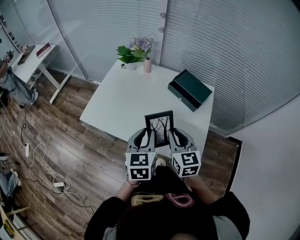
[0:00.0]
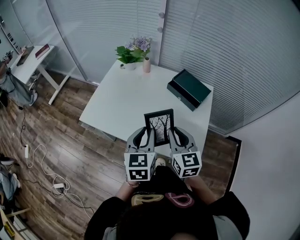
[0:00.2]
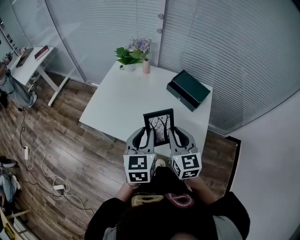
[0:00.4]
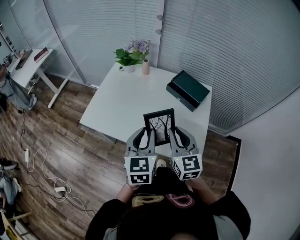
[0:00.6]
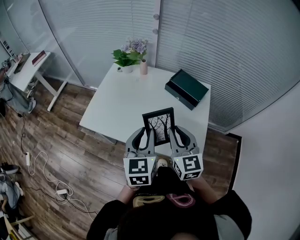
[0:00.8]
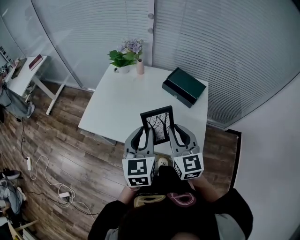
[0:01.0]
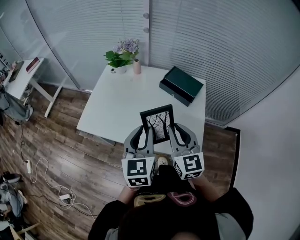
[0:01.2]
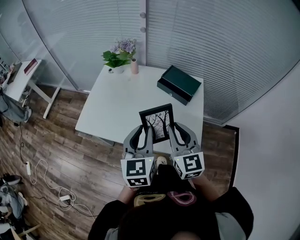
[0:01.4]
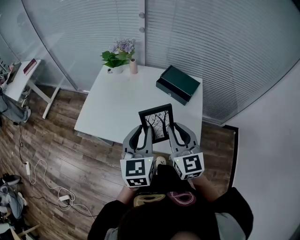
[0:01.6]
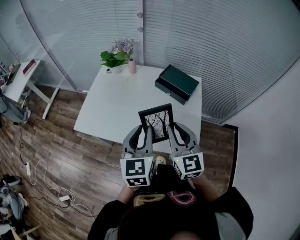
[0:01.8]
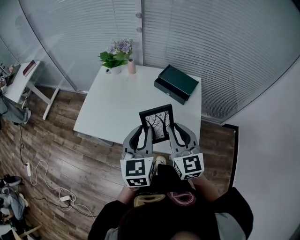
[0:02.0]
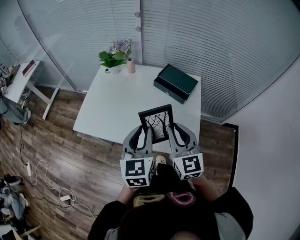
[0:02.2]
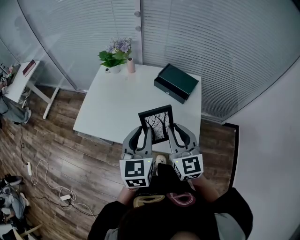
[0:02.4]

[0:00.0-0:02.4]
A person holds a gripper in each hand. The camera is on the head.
0:00.0 to 0:01.2: Both grippers travel together upward, roughly 5 cm.
0:01.2 to 0:02.4: The grippers stay close to where they were, moving slightly.

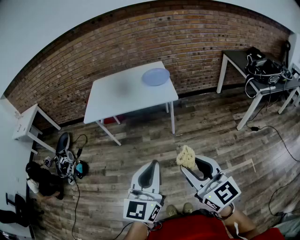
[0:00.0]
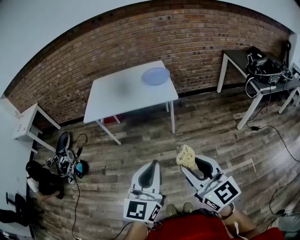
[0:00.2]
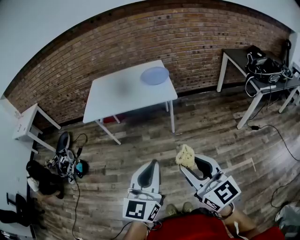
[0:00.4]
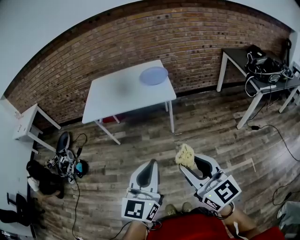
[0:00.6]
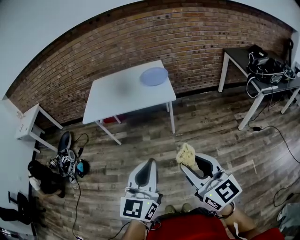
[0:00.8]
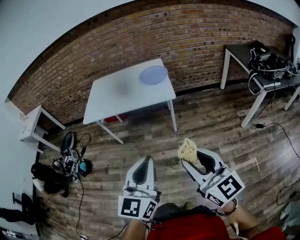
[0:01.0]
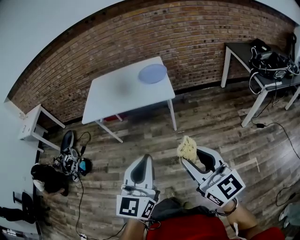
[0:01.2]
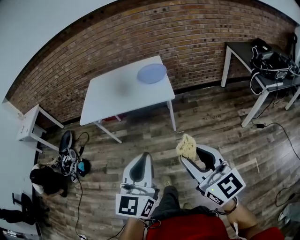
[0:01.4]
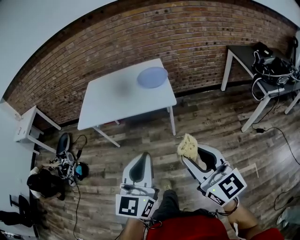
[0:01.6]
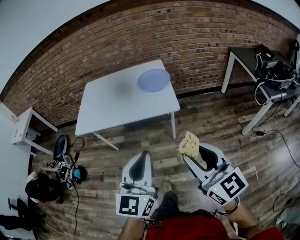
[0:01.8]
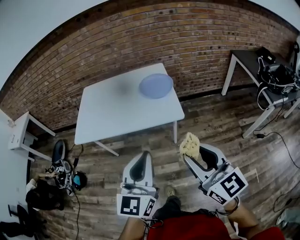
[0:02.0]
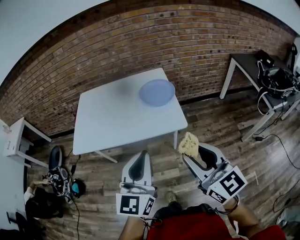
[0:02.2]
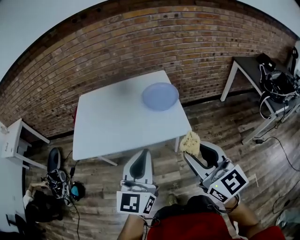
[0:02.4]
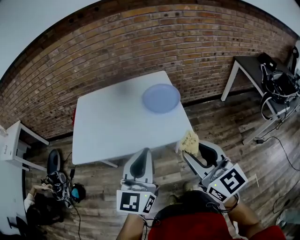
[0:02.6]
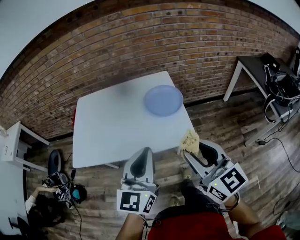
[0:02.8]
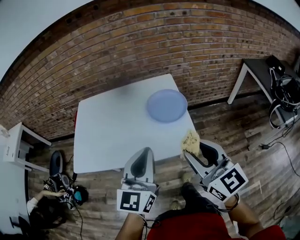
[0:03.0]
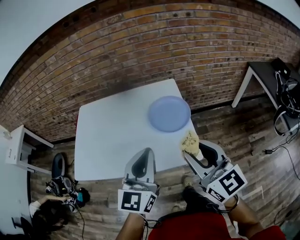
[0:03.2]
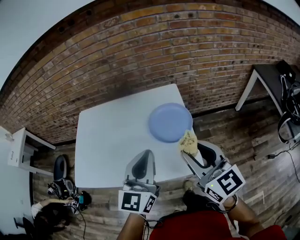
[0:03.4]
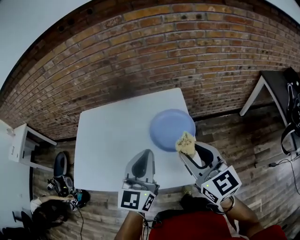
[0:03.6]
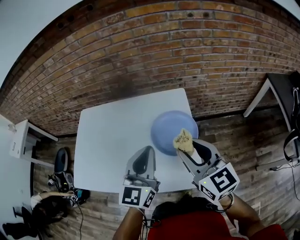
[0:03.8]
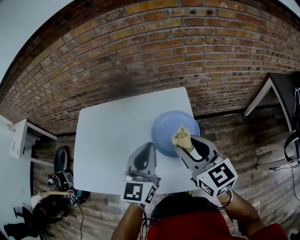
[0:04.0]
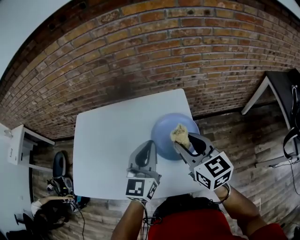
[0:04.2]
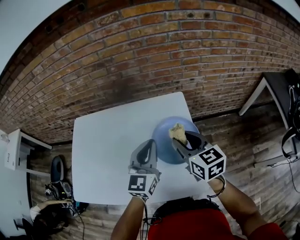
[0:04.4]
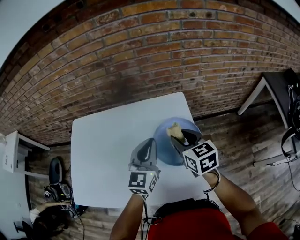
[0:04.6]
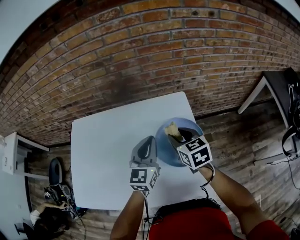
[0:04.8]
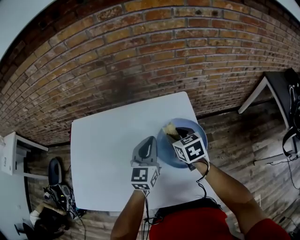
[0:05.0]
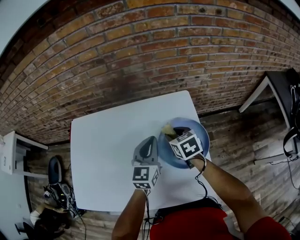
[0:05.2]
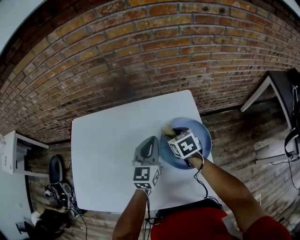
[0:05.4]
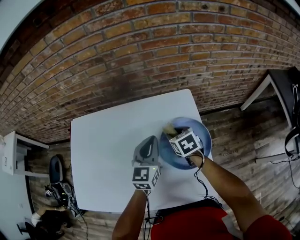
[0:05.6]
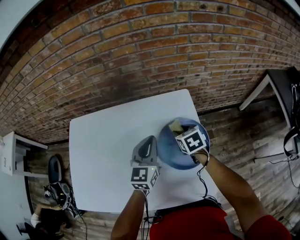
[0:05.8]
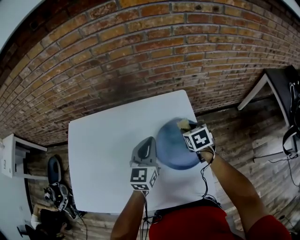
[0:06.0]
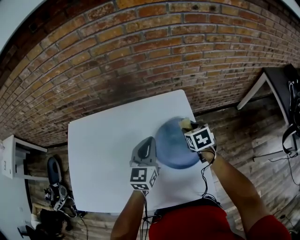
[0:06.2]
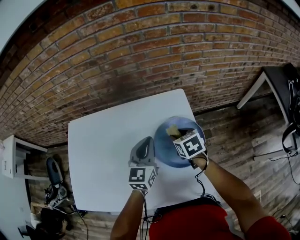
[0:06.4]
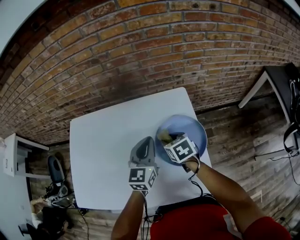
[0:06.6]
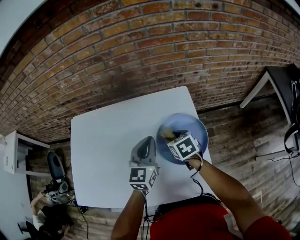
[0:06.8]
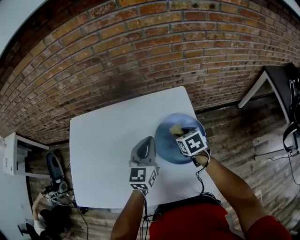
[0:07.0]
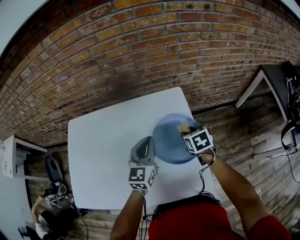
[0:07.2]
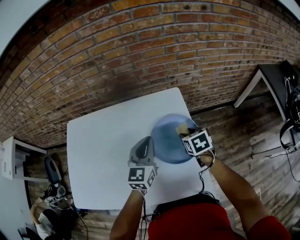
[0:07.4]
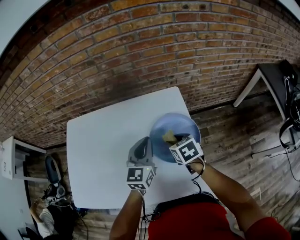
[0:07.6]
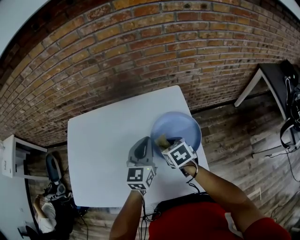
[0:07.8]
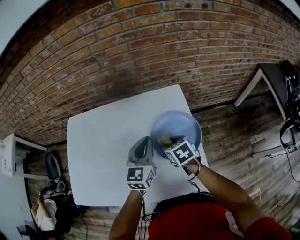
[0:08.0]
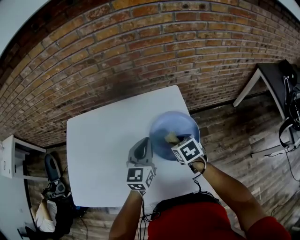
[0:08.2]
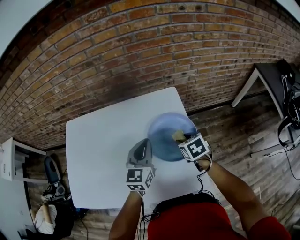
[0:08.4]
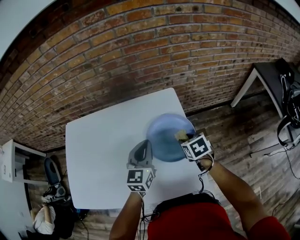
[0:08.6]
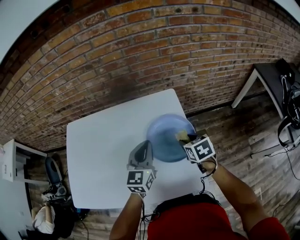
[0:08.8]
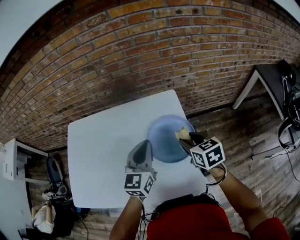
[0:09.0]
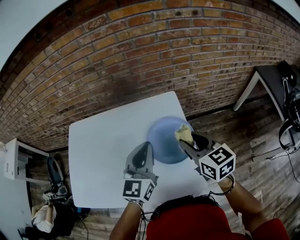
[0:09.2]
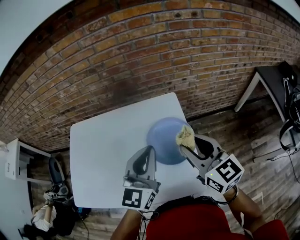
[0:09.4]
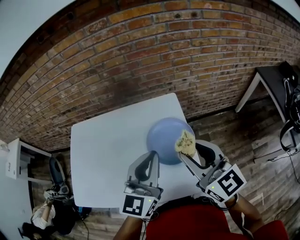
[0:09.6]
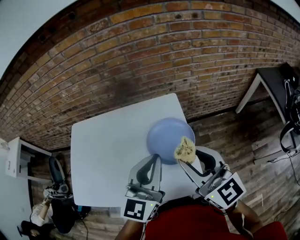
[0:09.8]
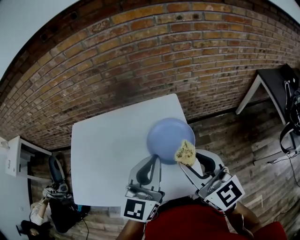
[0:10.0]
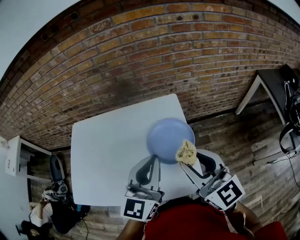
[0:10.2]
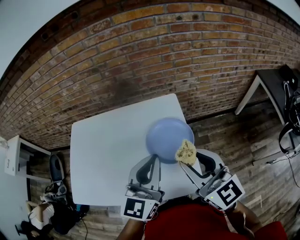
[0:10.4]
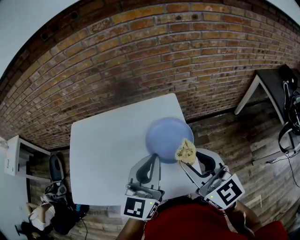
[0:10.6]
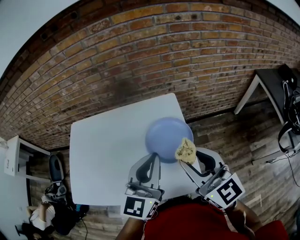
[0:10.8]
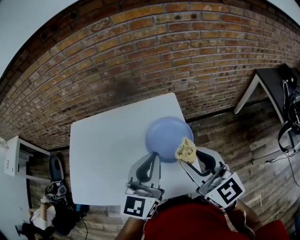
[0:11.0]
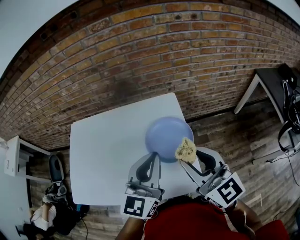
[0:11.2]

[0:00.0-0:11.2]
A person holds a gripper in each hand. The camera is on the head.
0:00.0 to 0:01.6: The grippers both shift forward and to the right by about 15 cm.
0:01.6 to 0:03.2: The pair of grippers is taken forward, roughly 50 cm.
0:03.2 to 0:04.8: The left gripper moves forward, approximately 30 cm. The right gripper shifts approximately 35 cm forward and downward, and tips its fingers downward by roughly 30 degrees.
0:04.8 to 0:06.4: The right gripper moves left and right over about 10 cm, changing direction 2 times.
0:06.4 to 0:08.0: The right gripper goes left and right, some 10 cm each way, reversing 2 times.
0:08.0 to 0:09.6: The right gripper travels upward by roughly 25 cm, and tilts its fingers some 50 degrees upward, while the left gripper heads upward, backward and to the right, covering approximately 20 cm.
0:09.6 to 0:11.2: The grippers make only small movements.

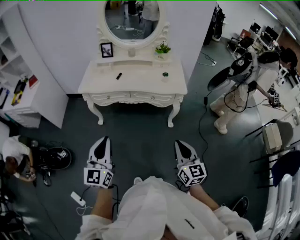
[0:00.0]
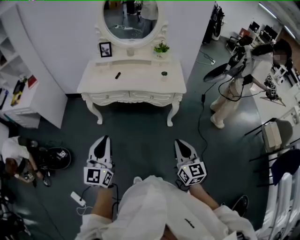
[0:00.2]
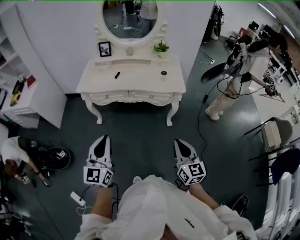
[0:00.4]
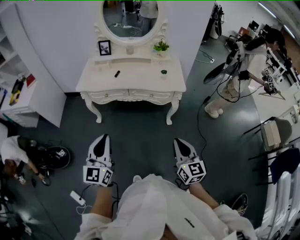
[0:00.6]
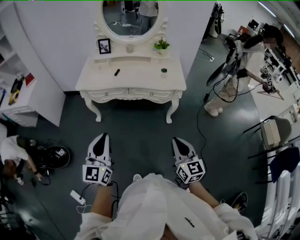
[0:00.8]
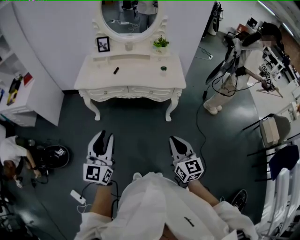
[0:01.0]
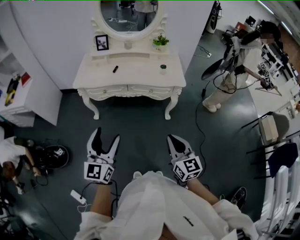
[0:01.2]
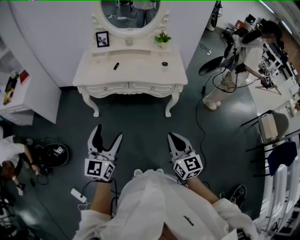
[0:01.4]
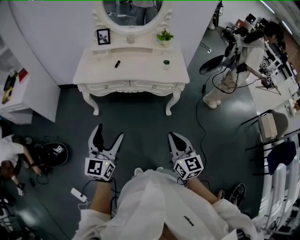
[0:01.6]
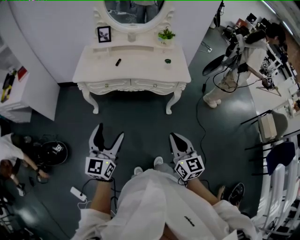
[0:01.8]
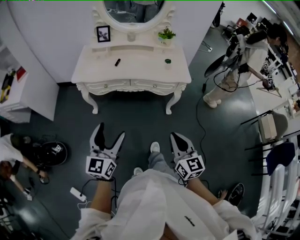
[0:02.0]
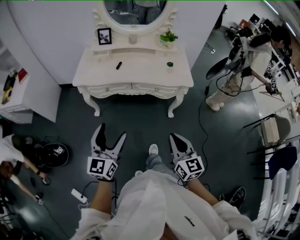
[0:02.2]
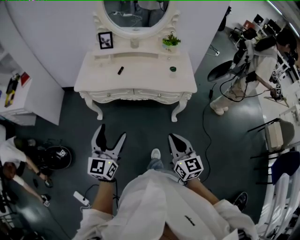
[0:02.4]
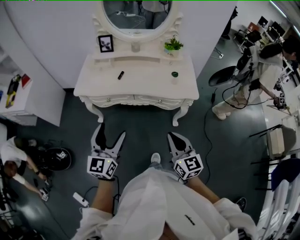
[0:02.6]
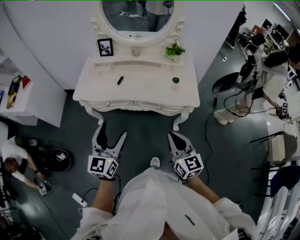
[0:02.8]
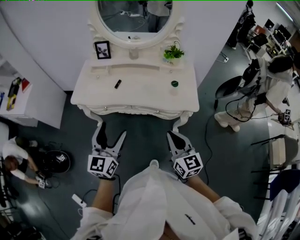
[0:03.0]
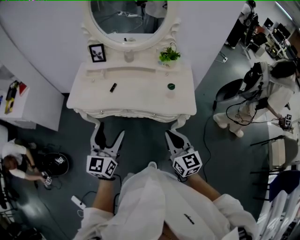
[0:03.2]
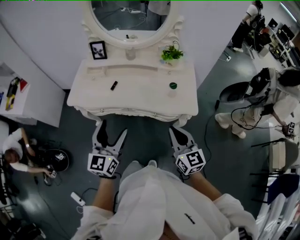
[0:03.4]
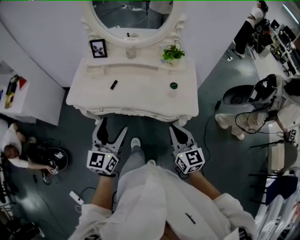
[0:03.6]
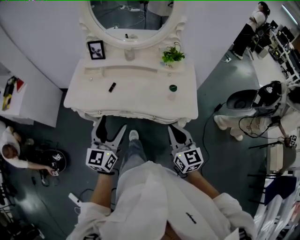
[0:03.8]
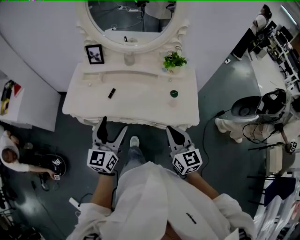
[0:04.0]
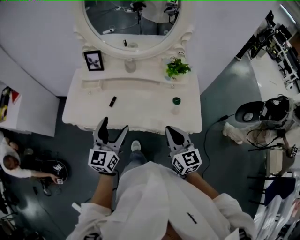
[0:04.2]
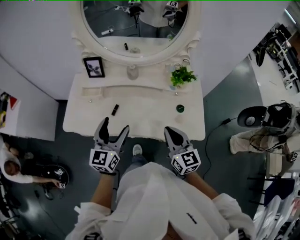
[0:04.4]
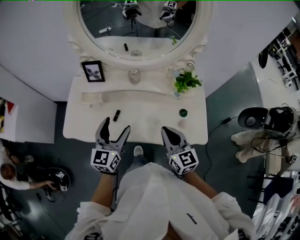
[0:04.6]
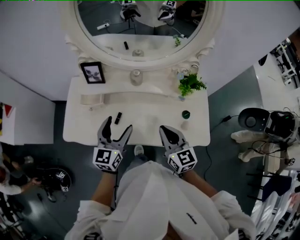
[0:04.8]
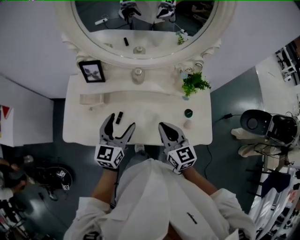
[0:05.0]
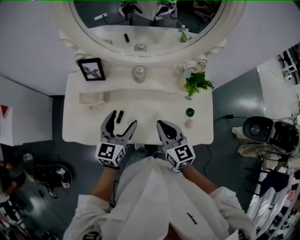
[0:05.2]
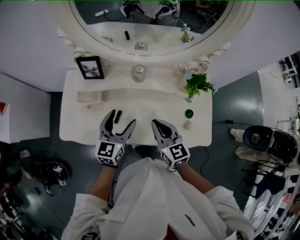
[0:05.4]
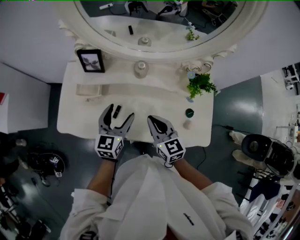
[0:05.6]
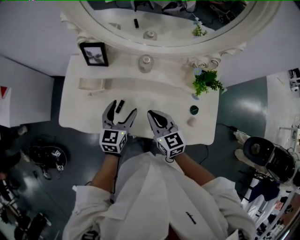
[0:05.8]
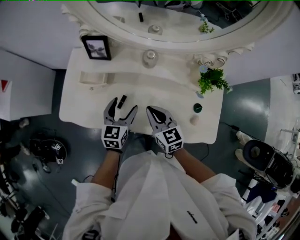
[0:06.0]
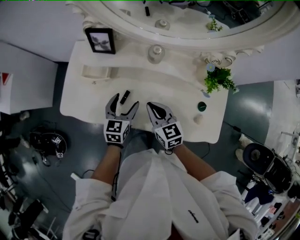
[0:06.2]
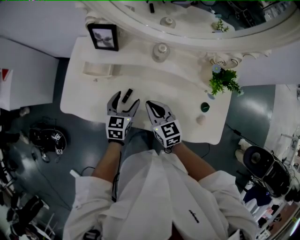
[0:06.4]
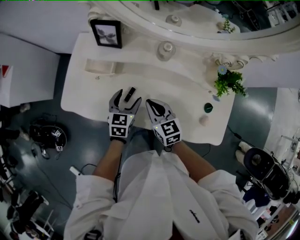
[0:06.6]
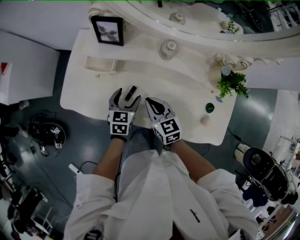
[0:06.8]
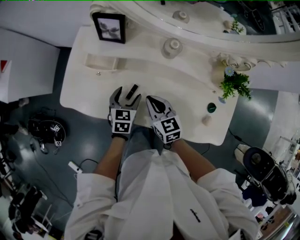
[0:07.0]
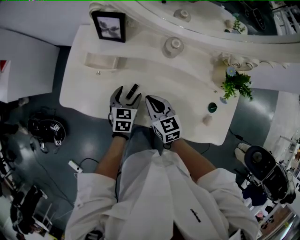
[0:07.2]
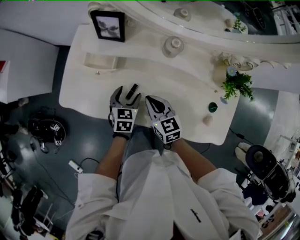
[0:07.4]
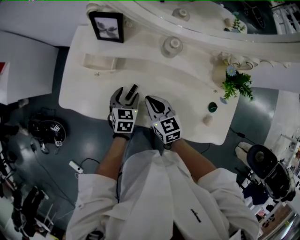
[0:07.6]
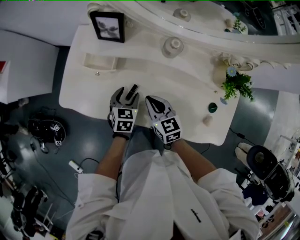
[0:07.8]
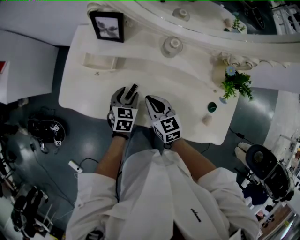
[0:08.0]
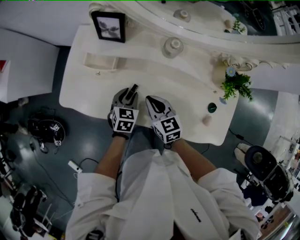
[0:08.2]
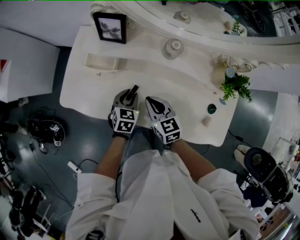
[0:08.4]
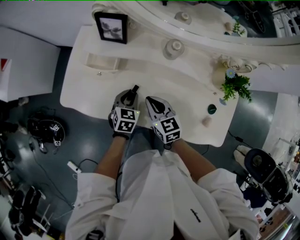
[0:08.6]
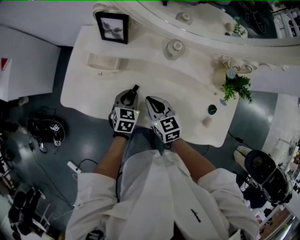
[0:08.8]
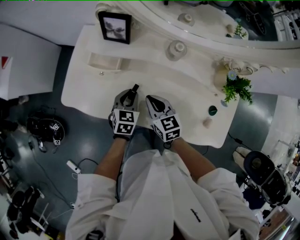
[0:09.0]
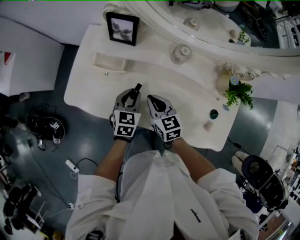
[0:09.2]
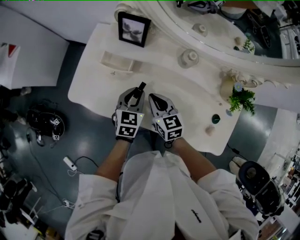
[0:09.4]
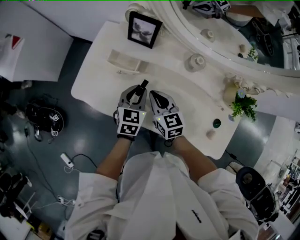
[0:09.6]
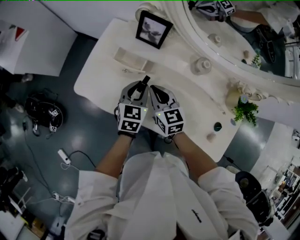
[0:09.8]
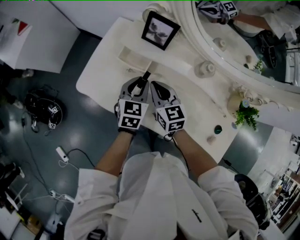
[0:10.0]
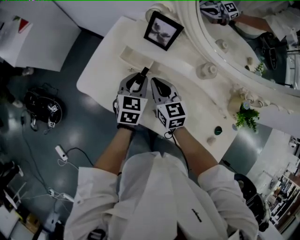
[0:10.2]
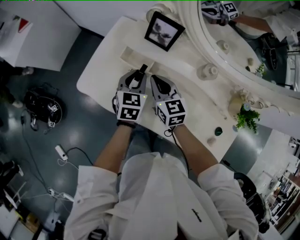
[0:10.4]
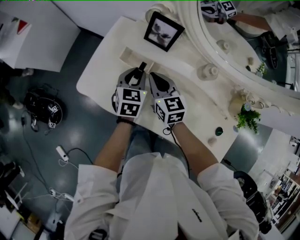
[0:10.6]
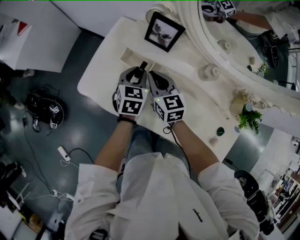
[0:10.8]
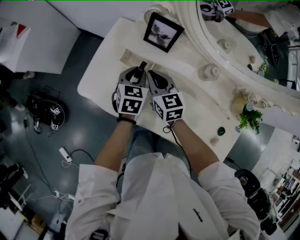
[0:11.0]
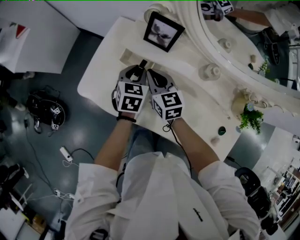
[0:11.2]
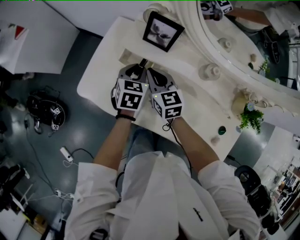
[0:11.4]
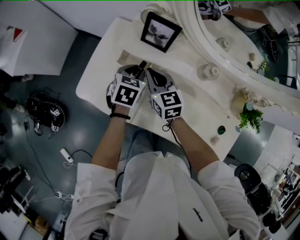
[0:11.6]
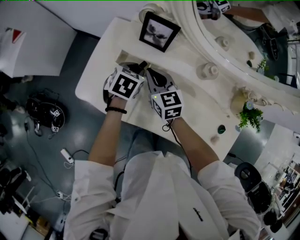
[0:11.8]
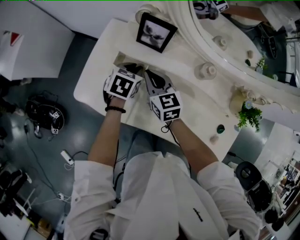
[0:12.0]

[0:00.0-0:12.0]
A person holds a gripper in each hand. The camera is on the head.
0:00.0 to 0:01.6: The right gripper is displaced to the left by about 10 cm. The left gripper ends up approximately 5 cm from where it was, and opens.
0:01.6 to 0:03.0: Both grippers move forward, roughly 25 cm.
0:03.0 to 0:04.4: The two grippers go some 25 cm forward.
0:04.4 to 0:06.0: The right gripper travels forward, to the left and downward by about 25 cm, while the left gripper travels downward and forward by roughly 20 cm, and rotates about 20 degrees.
0:06.0 to 0:07.6: The left gripper travels downward by about 10 cm, and changes its angle by approximately 20 degrees. Meanwhile the right gripper travels downward and to the left by about 10 cm.
0:07.6 to 0:09.0: The left gripper closes its fingers.
0:09.0 to 0:10.4: The left gripper travels forward, to the left and upward by about 15 cm; the right gripper shifts roughly 15 cm forward and to the left.
0:10.4 to 0:12.0: The left gripper ends up about 5 cm from where it was, and changes its angle by roughly 30 degrees.
